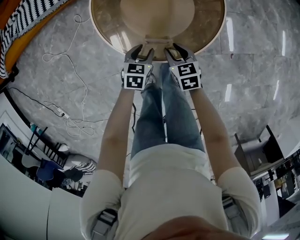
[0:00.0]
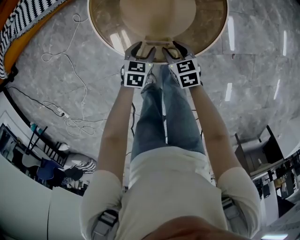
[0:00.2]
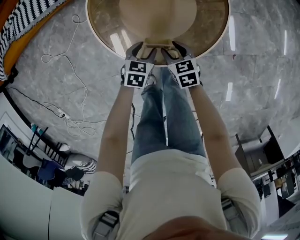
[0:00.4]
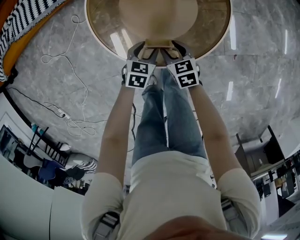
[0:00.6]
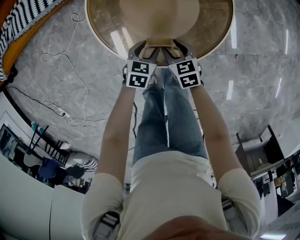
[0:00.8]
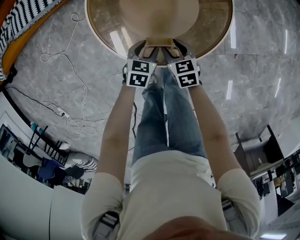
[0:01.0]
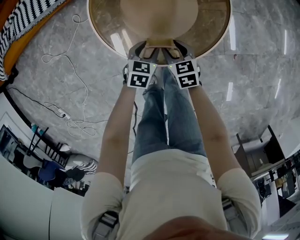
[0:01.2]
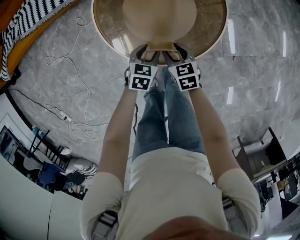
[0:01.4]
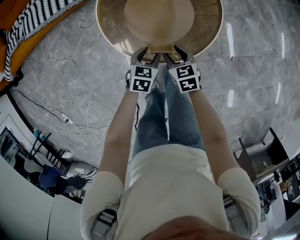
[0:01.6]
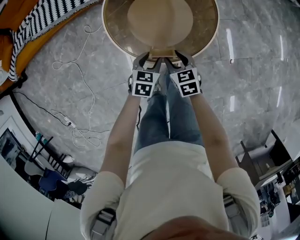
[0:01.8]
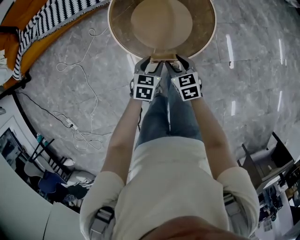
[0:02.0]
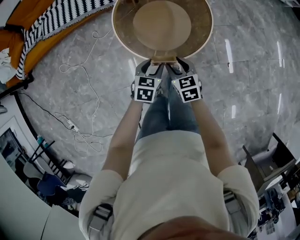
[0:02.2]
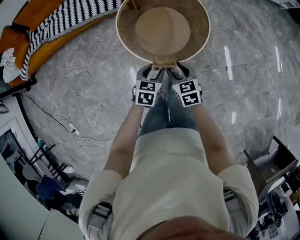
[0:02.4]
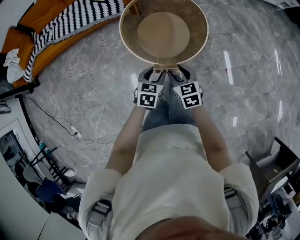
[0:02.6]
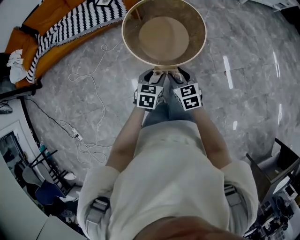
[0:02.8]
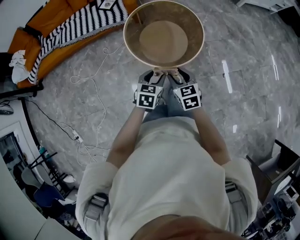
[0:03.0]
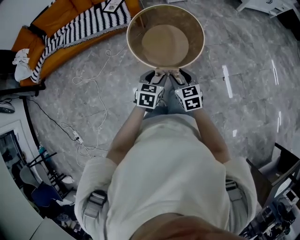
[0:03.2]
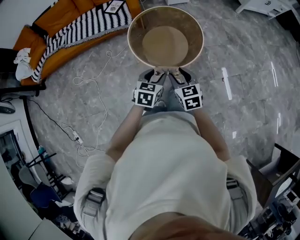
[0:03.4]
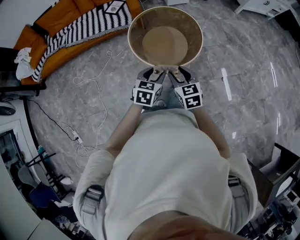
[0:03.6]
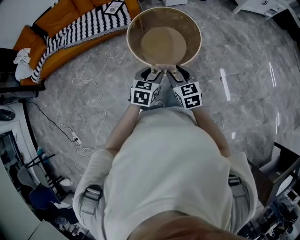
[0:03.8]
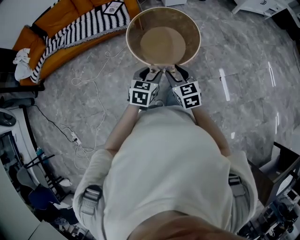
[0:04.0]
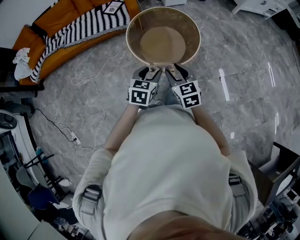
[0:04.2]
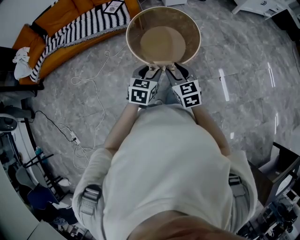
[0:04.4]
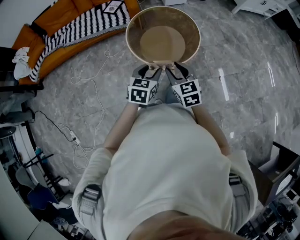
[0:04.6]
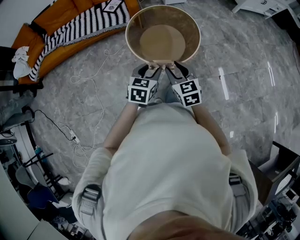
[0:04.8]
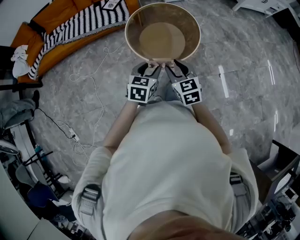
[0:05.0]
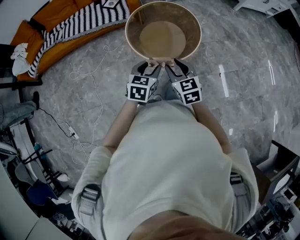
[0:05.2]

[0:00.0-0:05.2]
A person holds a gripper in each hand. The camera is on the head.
0:00.0 to 0:01.8: Both grippers move upward, roughly 5 cm.
0:01.8 to 0:03.4: Both grippers travel together upward and backward, about 30 cm.
0:03.4 to 0:05.2: The grippers make only small movements.

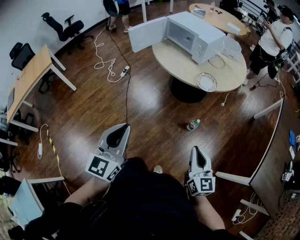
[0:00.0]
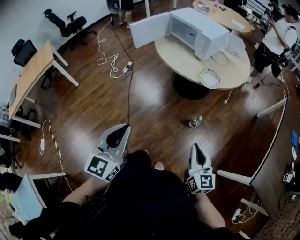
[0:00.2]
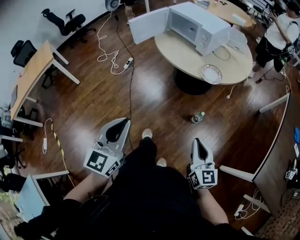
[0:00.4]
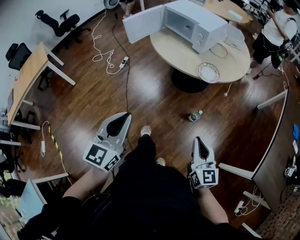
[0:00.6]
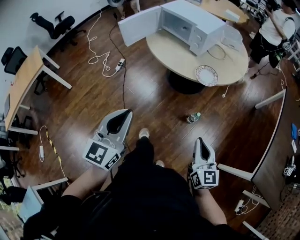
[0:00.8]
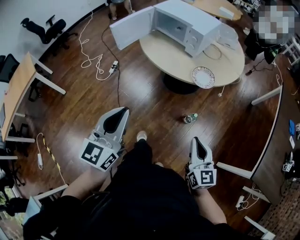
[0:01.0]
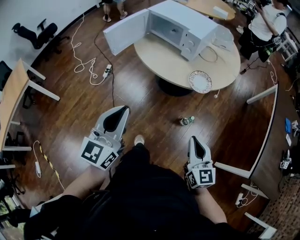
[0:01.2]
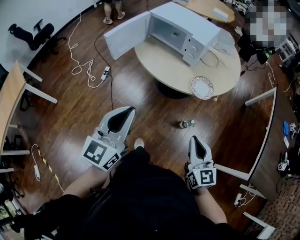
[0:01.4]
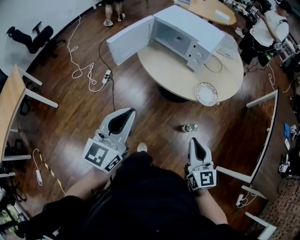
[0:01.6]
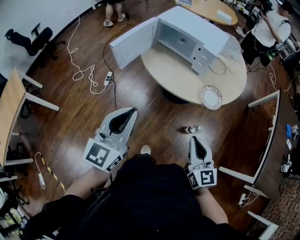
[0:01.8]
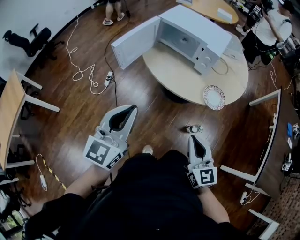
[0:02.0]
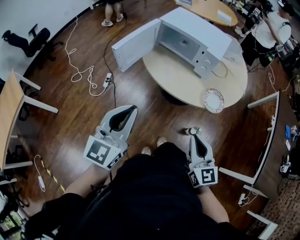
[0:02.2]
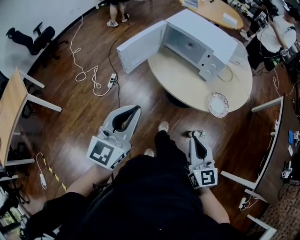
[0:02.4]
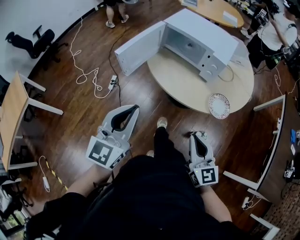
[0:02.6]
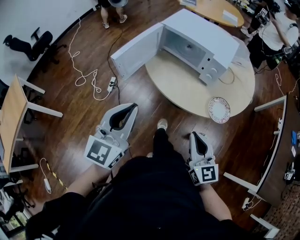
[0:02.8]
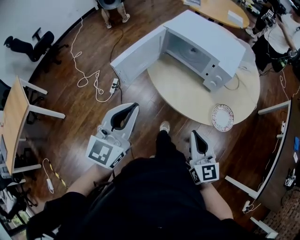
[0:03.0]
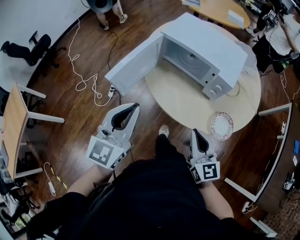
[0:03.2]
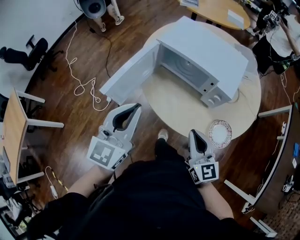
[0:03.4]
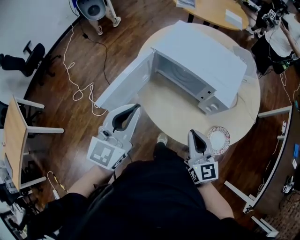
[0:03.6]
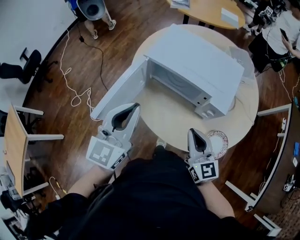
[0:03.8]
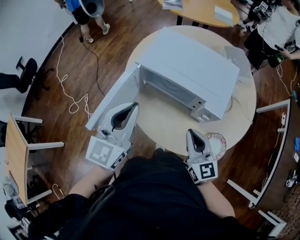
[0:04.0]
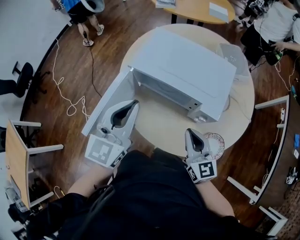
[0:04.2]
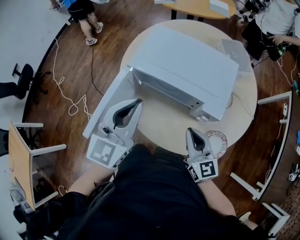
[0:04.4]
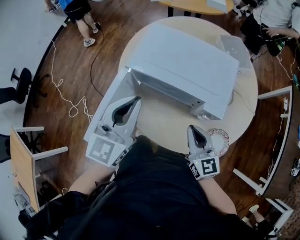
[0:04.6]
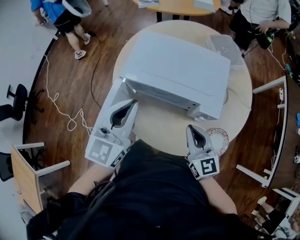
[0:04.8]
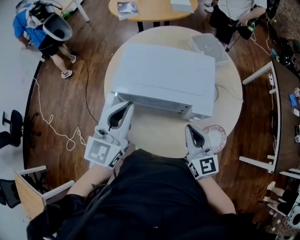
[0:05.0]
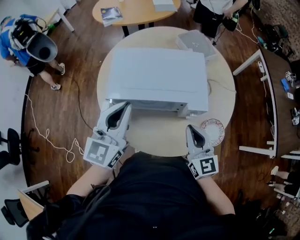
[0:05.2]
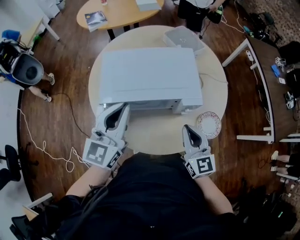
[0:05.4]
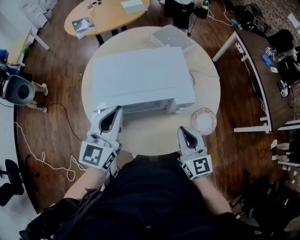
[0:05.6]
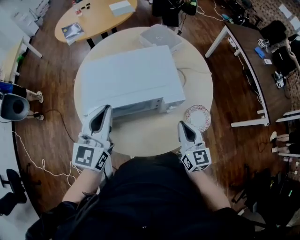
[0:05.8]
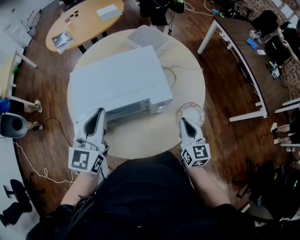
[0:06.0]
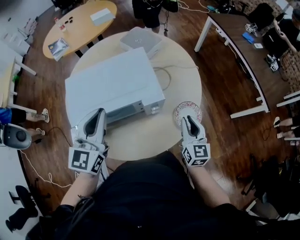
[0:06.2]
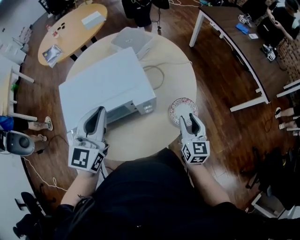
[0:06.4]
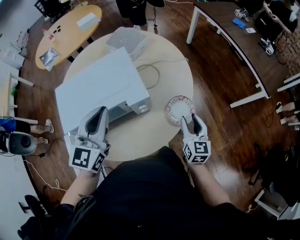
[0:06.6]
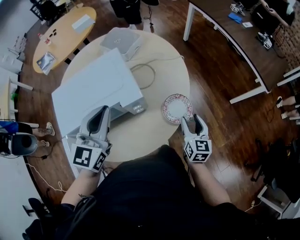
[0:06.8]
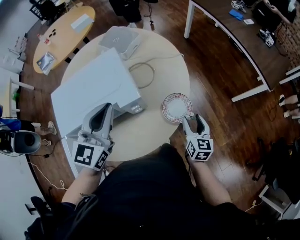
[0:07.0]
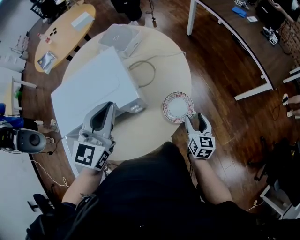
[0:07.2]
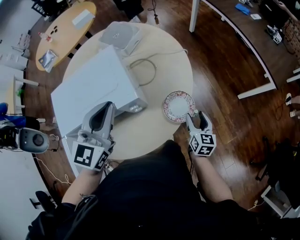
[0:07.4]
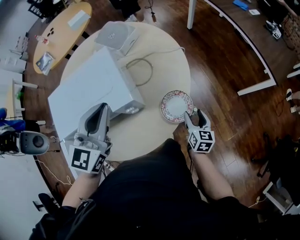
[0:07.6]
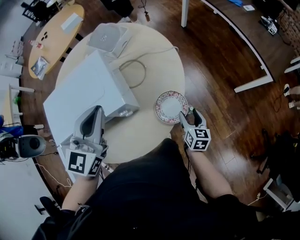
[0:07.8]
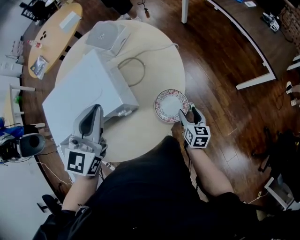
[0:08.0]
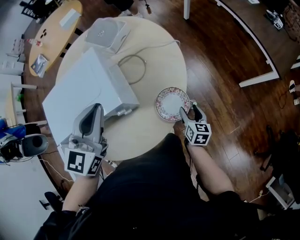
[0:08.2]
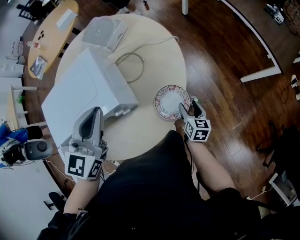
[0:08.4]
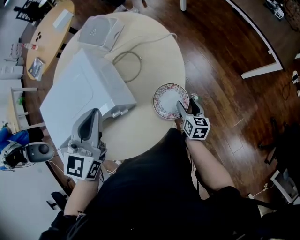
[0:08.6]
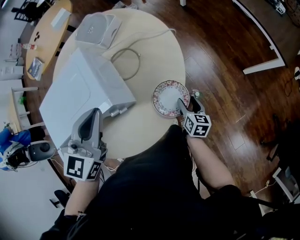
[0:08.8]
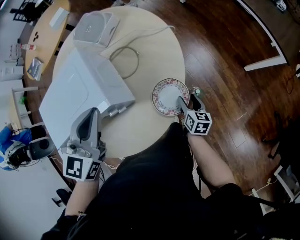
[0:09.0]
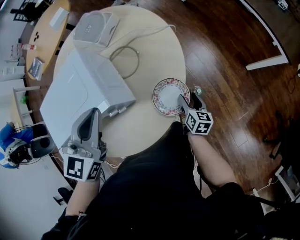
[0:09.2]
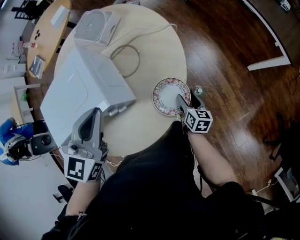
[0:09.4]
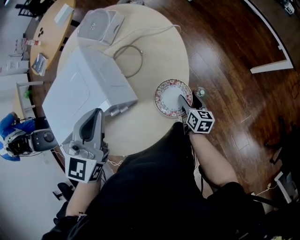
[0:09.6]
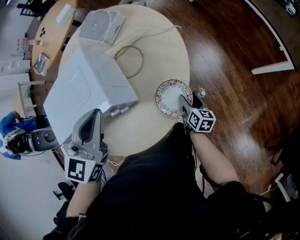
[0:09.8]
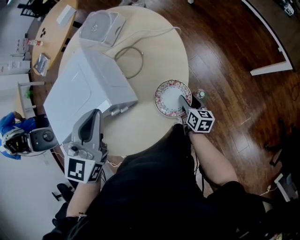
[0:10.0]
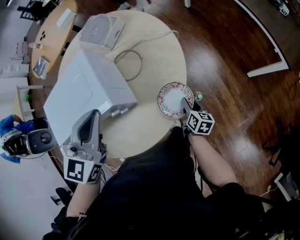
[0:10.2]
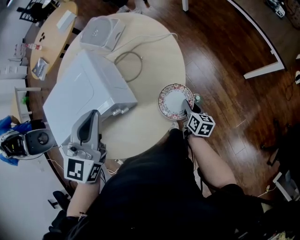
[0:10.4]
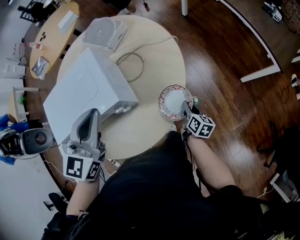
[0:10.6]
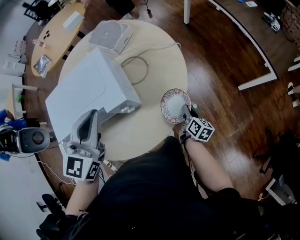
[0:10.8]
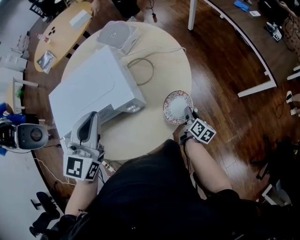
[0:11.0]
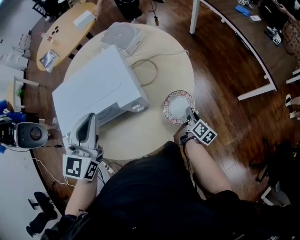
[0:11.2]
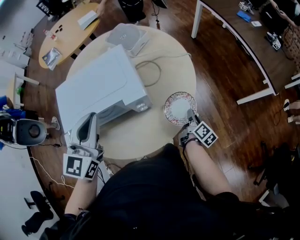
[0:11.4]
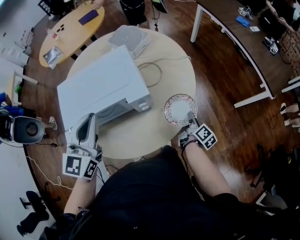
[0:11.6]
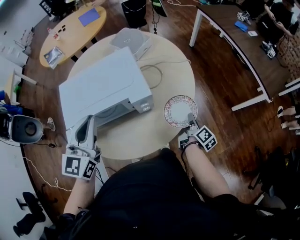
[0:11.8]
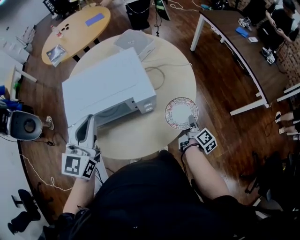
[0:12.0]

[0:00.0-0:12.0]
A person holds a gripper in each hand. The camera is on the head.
0:00.0 to 0:01.6: The left gripper moves forward, about 25 cm, while the right gripper moves forward and to the left, some 20 cm.
0:01.6 to 0:03.0: Both grippers travel together forward and to the left, roughly 20 cm.
0:03.0 to 0:04.4: The grippers both shift forward by approximately 25 cm.
0:04.4 to 0:06.0: The right gripper changes place by roughly 10 cm, and changes its angle by about 50 degrees, while the left gripper moves about 10 cm, and swivels about 30 degrees.
0:06.0 to 0:07.6: The right gripper travels to the right and downward by about 20 cm, rotates approximately 30 degrees, and opens. The left gripper moves to the right and forward, about 20 cm.
0:07.6 to 0:09.0: The left gripper shifts by some 5 cm, while the right gripper shifts approximately 10 cm downward.
0:09.0 to 0:10.4: The right gripper closes.
0:10.4 to 0:12.0: The left gripper travels to the left and backward by some 20 cm; the right gripper shifts roughly 10 cm upward, and swivels about 30 degrees.

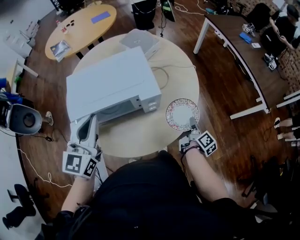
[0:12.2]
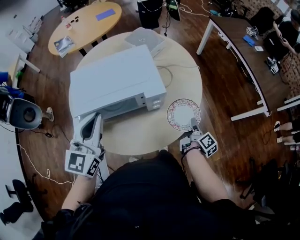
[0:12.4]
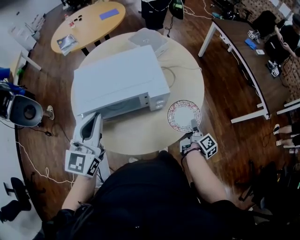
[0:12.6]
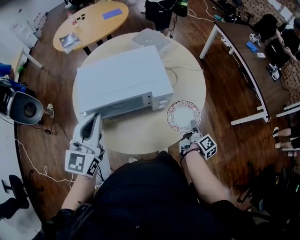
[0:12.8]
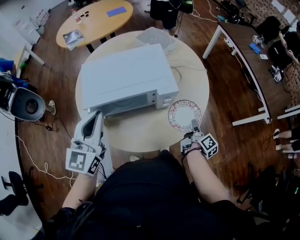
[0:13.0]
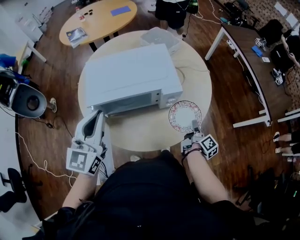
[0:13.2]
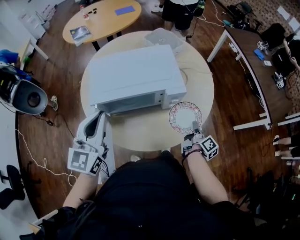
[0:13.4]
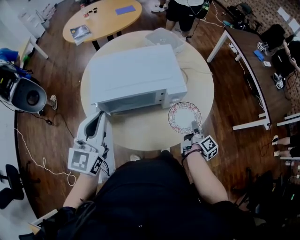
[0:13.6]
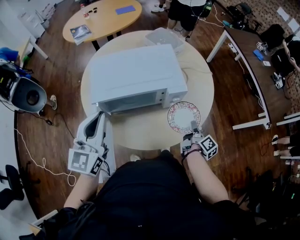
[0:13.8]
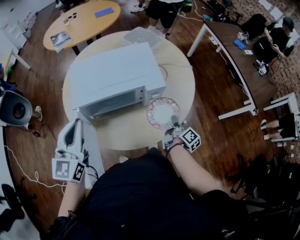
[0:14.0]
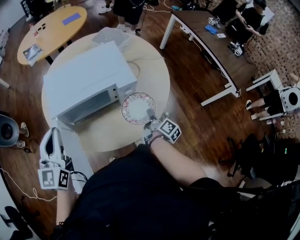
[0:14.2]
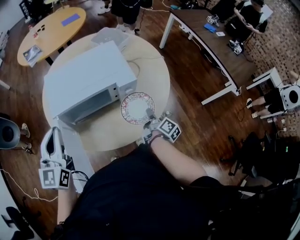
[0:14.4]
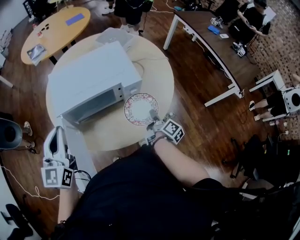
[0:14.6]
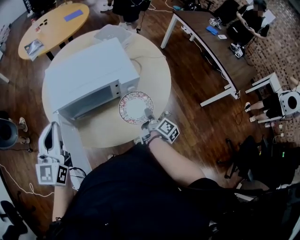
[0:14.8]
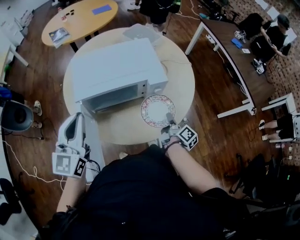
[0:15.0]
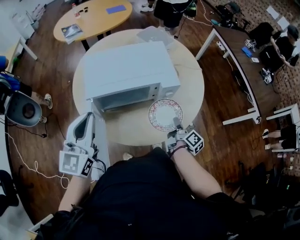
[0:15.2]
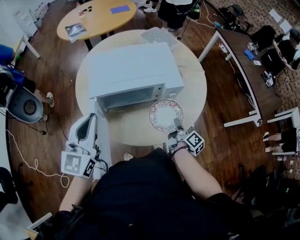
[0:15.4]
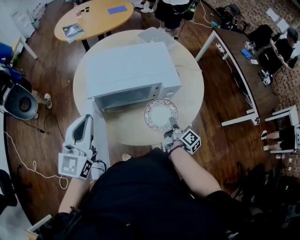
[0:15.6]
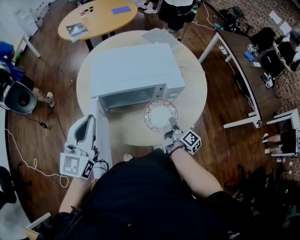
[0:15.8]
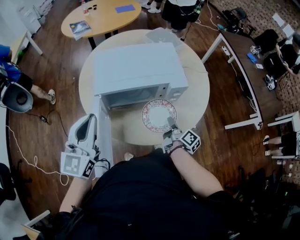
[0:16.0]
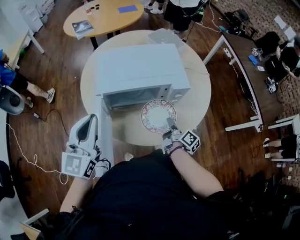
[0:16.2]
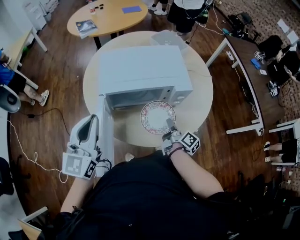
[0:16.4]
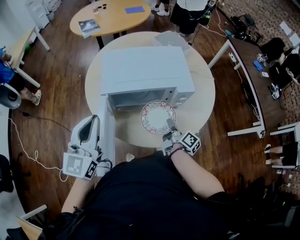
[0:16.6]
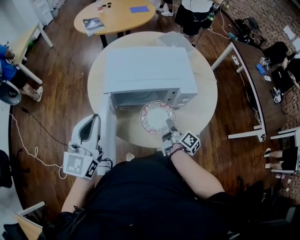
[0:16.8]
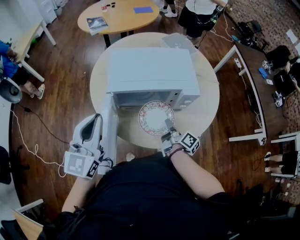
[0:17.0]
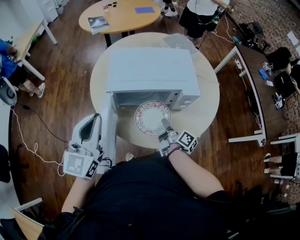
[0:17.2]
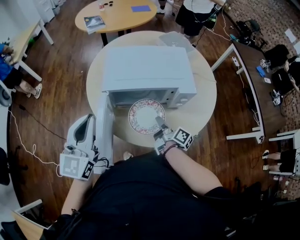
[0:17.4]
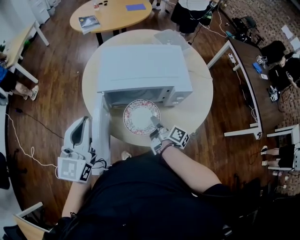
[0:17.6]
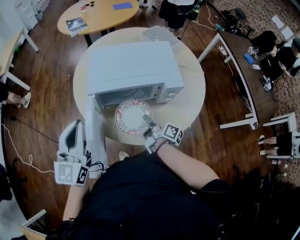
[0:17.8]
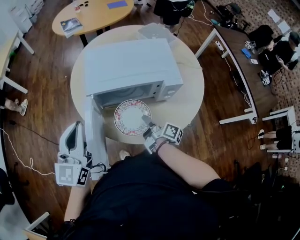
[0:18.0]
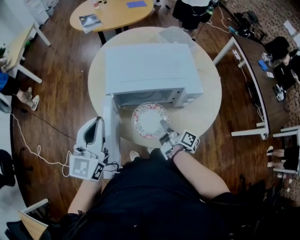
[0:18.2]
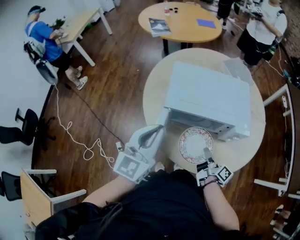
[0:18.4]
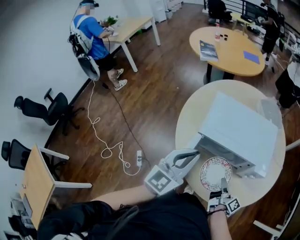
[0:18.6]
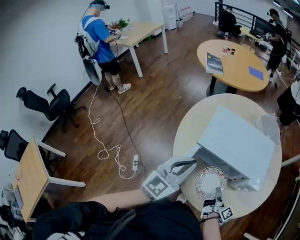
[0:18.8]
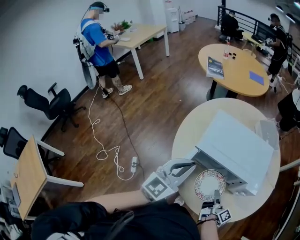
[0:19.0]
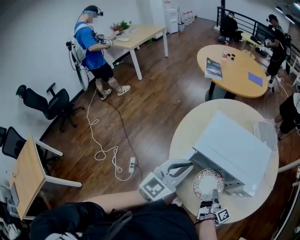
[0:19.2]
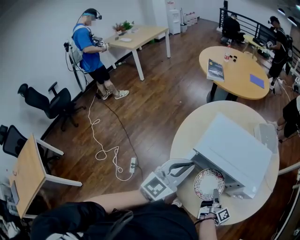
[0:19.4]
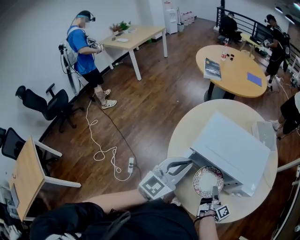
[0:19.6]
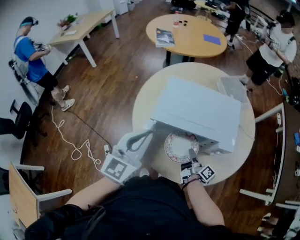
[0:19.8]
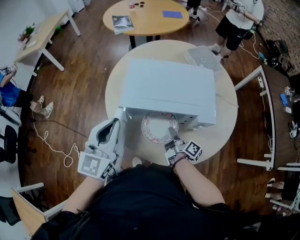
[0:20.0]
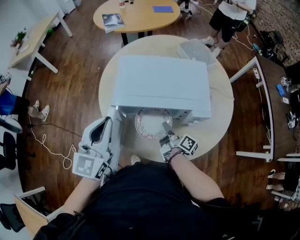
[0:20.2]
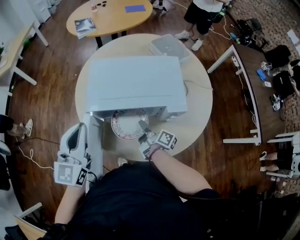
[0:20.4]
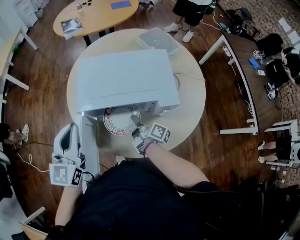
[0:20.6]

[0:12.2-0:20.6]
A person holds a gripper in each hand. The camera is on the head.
0:12.2 to 0:13.6: The left gripper moves to the left and backward, approximately 10 cm. The right gripper is displaced to the left by approximately 5 cm.
0:13.6 to 0:15.0: The right gripper changes place by about 5 cm.
0:15.0 to 0:16.4: The right gripper goes approximately 10 cm to the left.
0:16.4 to 0:17.8: The right gripper goes approximately 10 cm to the left.
0:17.8 to 0:19.2: The left gripper goes about 5 cm to the right.
0:19.2 to 0:20.6: The right gripper moves roughly 5 cm.
